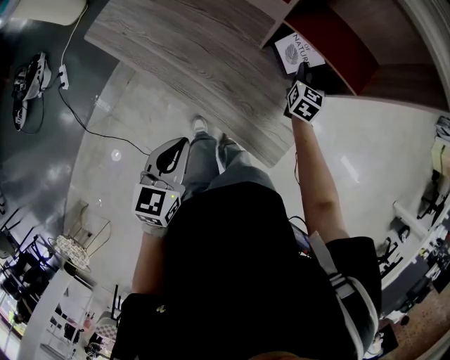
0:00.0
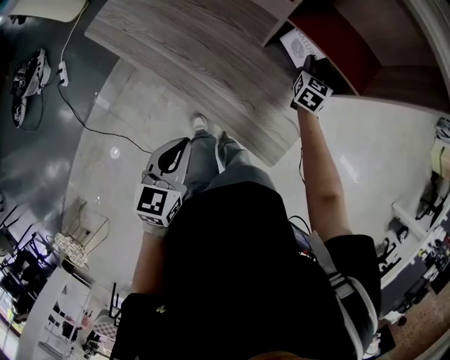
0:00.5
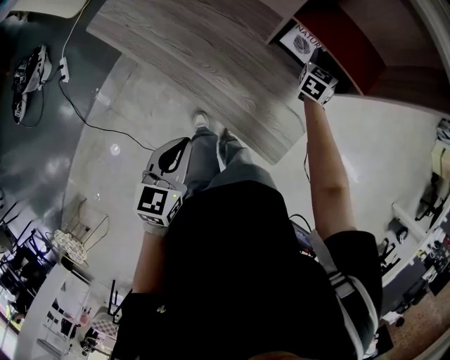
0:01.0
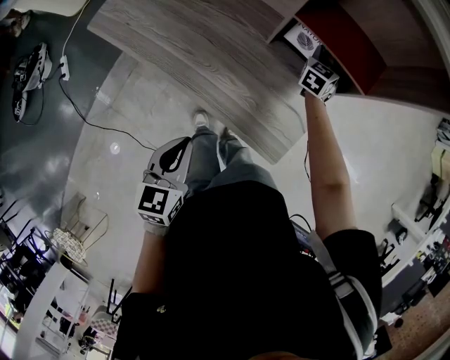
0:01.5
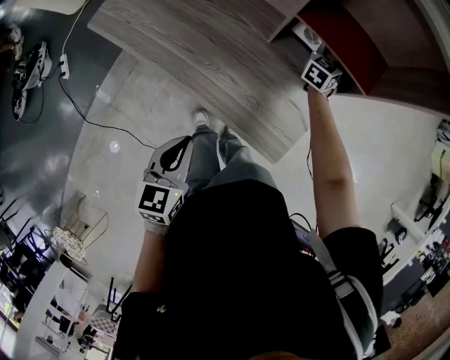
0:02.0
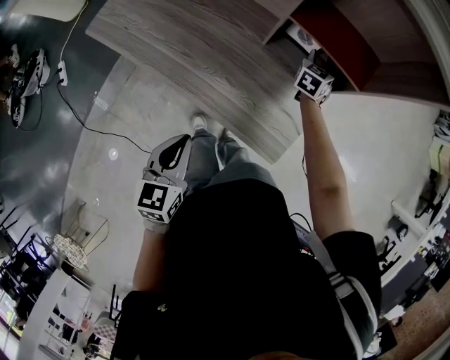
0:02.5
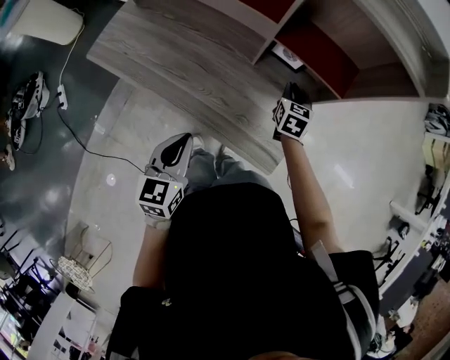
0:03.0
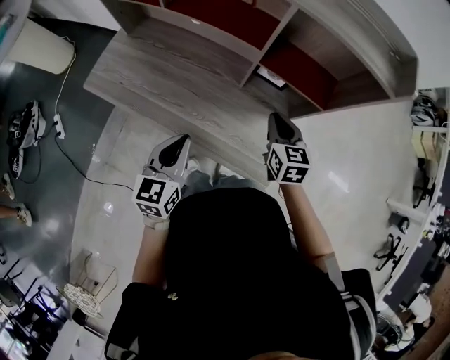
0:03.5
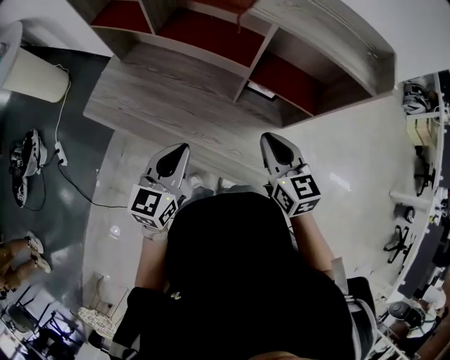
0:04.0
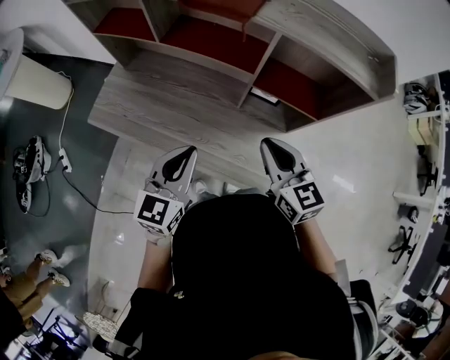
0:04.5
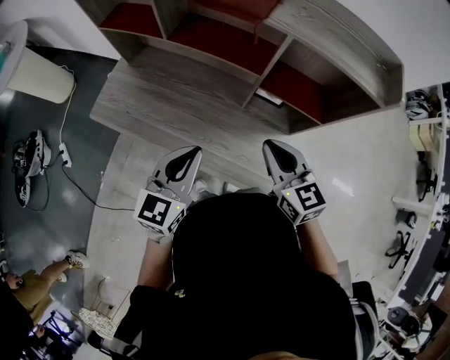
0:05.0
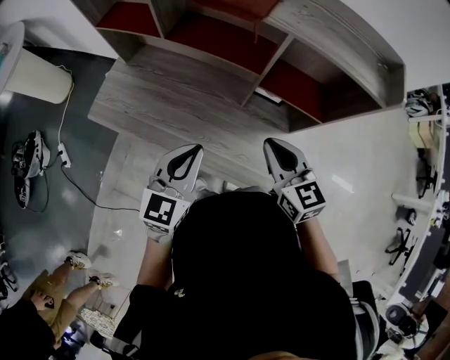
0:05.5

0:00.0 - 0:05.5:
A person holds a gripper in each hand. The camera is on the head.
0:00.0 - 0:02.0: The right gripper is displaced forward by approximately 10 cm.
0:02.0 - 0:03.5: The right gripper heads backward and upward, covering about 25 cm, rotates roughly 30 degrees, and closes up, while the left gripper moves forward, upward and to the left, about 15 cm.
0:03.5 - 0:05.5: The left gripper goes roughly 10 cm upward; the right gripper goes approximately 15 cm upward and to the left.

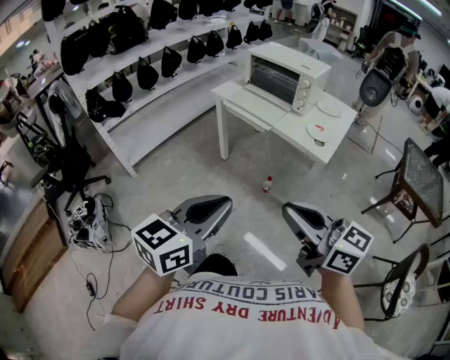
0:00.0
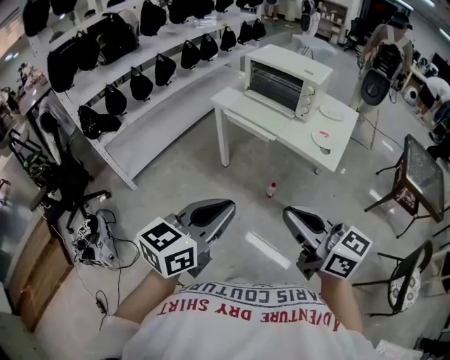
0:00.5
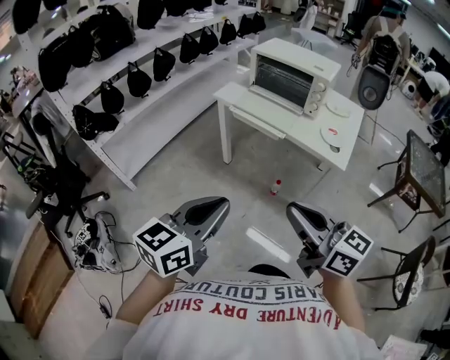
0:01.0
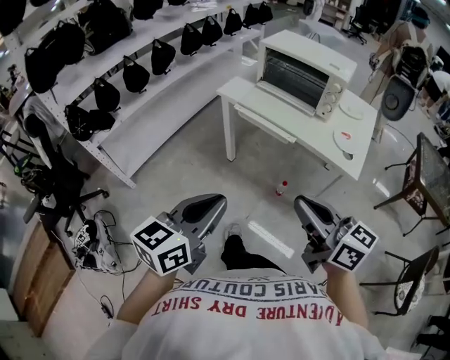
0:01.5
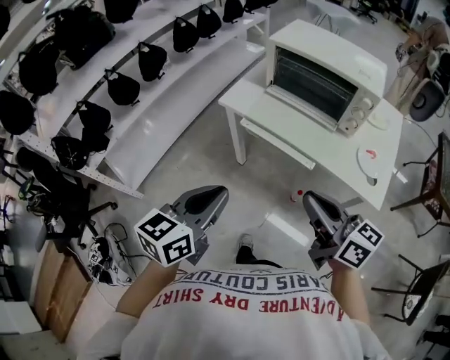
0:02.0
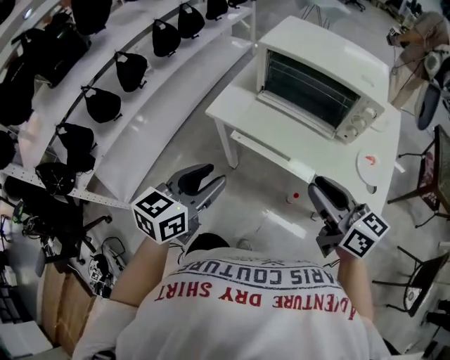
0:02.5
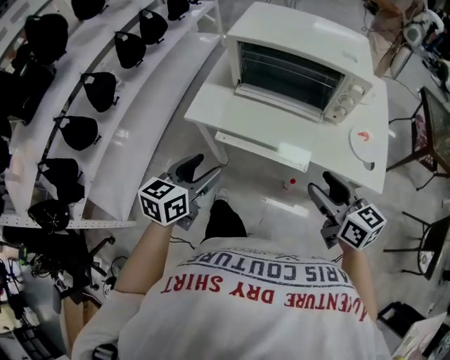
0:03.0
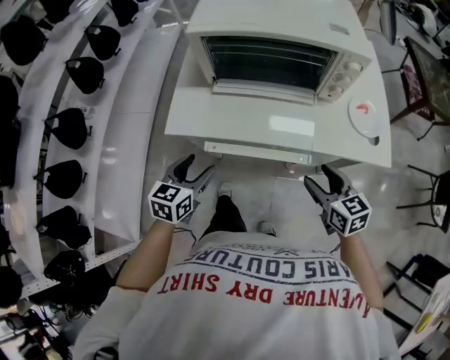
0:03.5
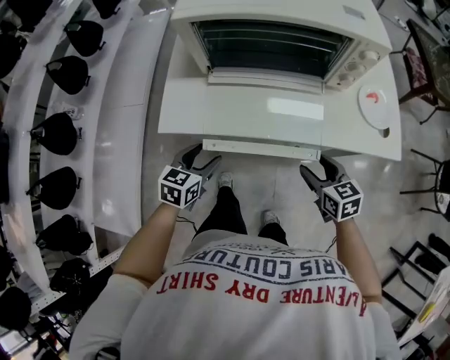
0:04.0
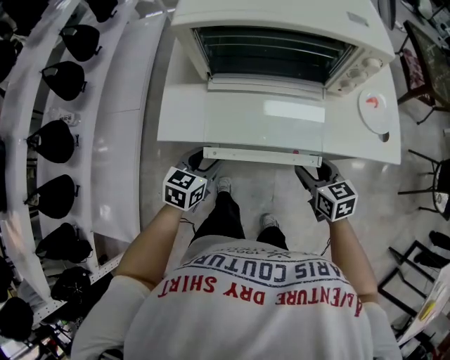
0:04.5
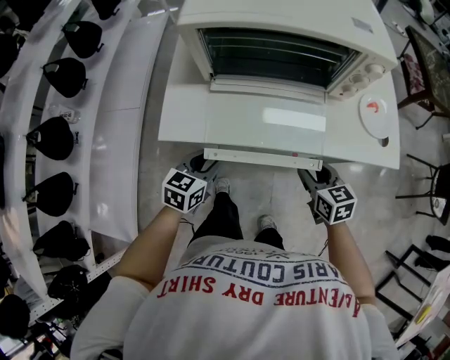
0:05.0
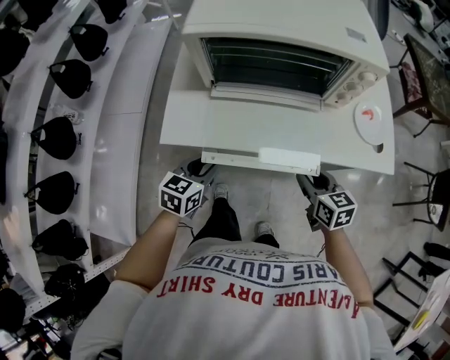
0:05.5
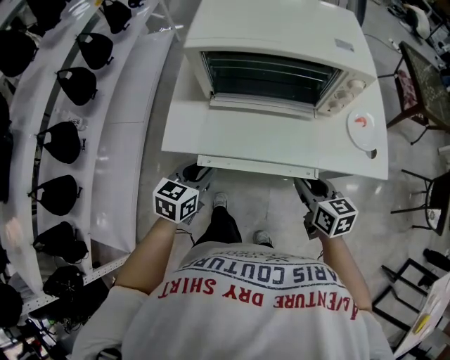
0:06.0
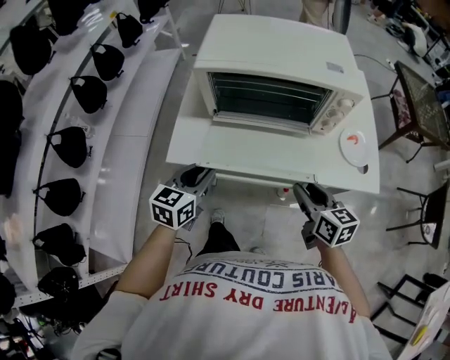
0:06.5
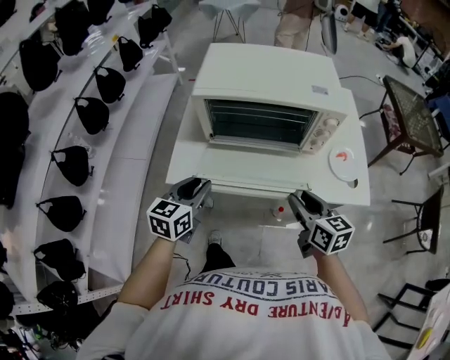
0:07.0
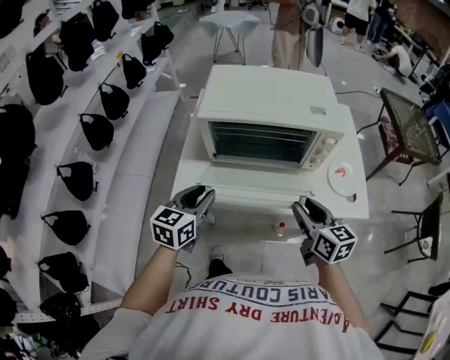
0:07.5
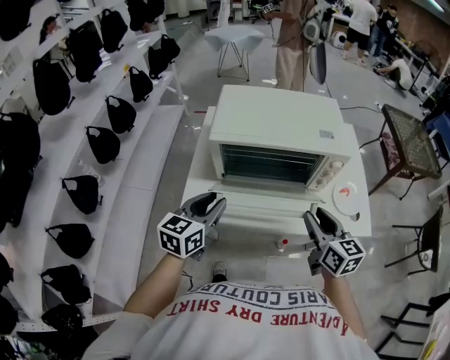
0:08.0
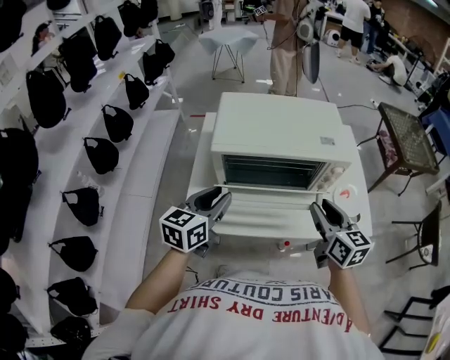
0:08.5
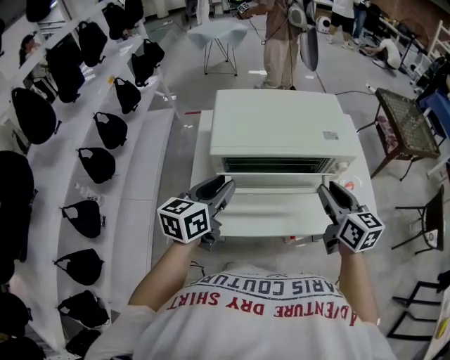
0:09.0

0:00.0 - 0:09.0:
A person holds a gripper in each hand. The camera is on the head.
0:00.0 - 0:02.0: The grippers both shift forward by about 40 cm. The right gripper changes its angle by some 20 degrees.
0:02.0 - 0:04.5: The left gripper ends up some 40 cm from where it was, changes its angle by roughly 40 degrees, and opens; the right gripper goes some 25 cm downward, points its fingers roughly 30 degrees further downward, and opens.
0:04.5 - 0:07.0: Both grippers travel together upward, roughly 15 cm.
0:07.0 - 0:09.0: The right gripper shifts approximately 15 cm upward and forward, while the left gripper moves forward and upward, roughly 15 cm.

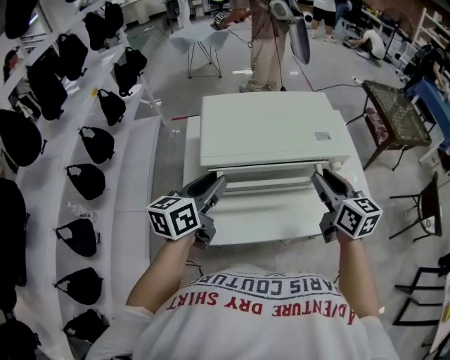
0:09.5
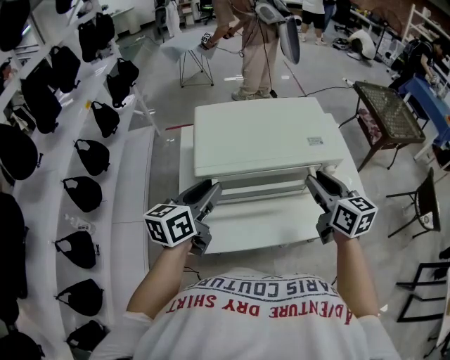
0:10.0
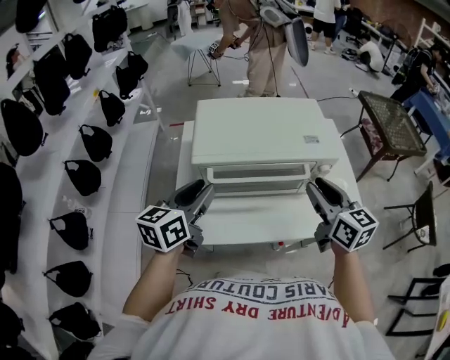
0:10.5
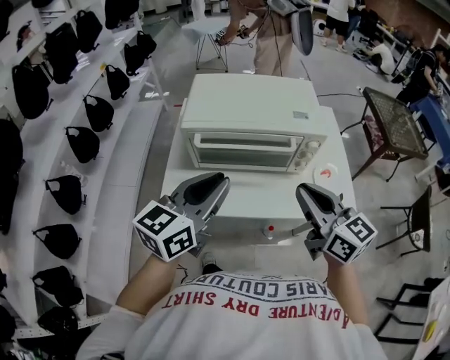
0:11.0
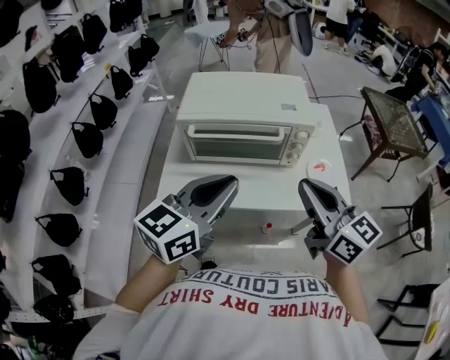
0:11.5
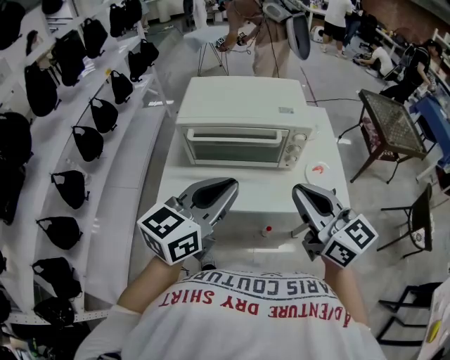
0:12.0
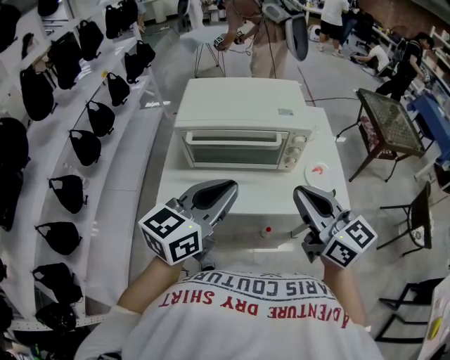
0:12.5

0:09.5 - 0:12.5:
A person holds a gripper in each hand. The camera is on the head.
0:09.5 - 0:11.0: The left gripper is displaced backward, to the right and upward by about 20 cm. The right gripper goes about 15 cm backward, rotates some 20 degrees, and closes its fingers.
0:11.0 - 0:12.5: The right gripper moves about 5 cm; the left gripper is displaced to the right by roughly 5 cm.

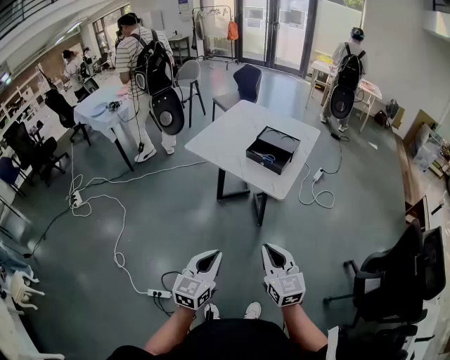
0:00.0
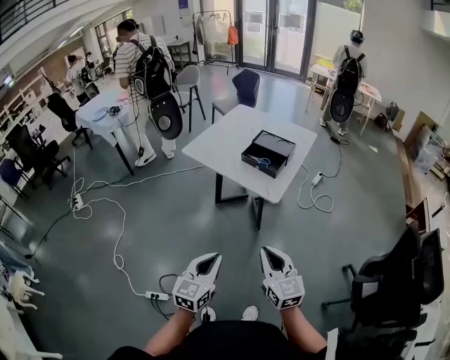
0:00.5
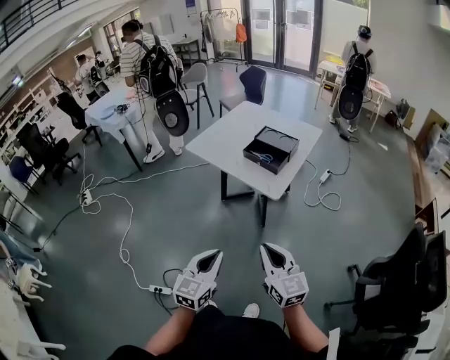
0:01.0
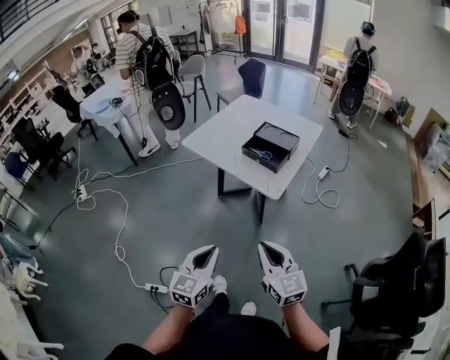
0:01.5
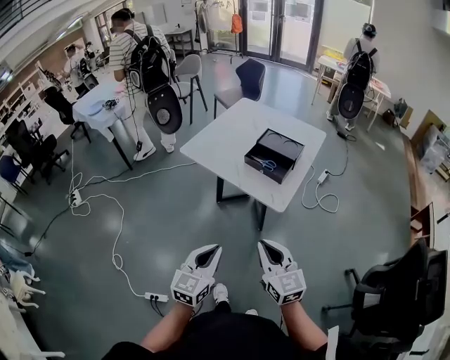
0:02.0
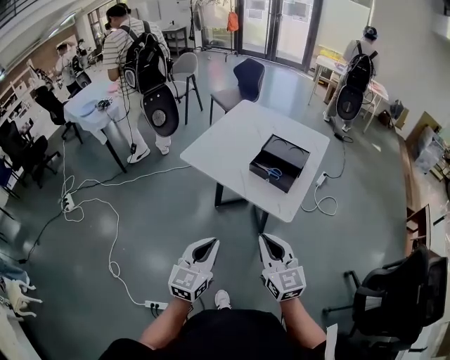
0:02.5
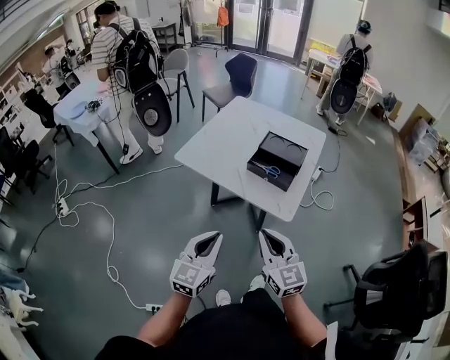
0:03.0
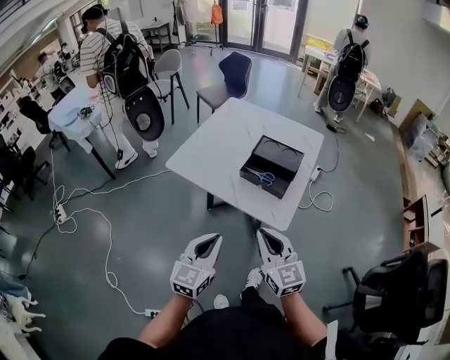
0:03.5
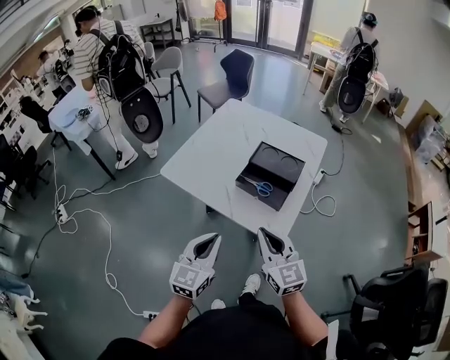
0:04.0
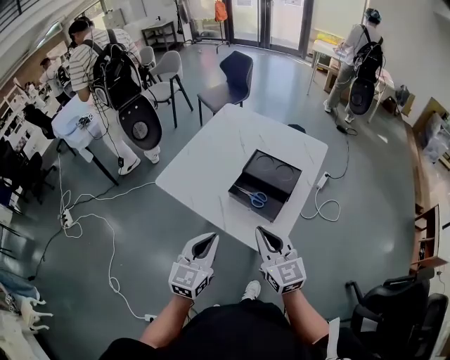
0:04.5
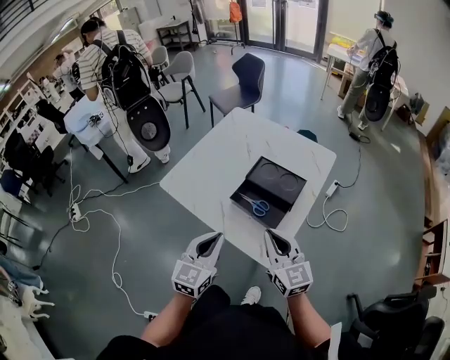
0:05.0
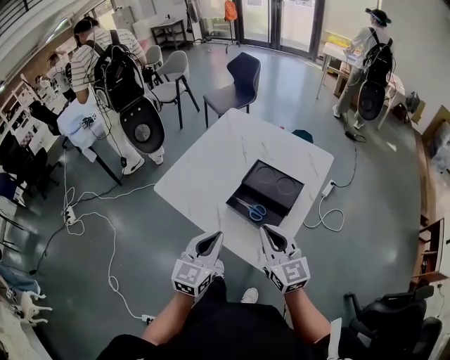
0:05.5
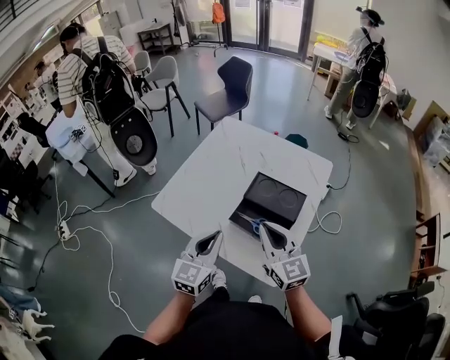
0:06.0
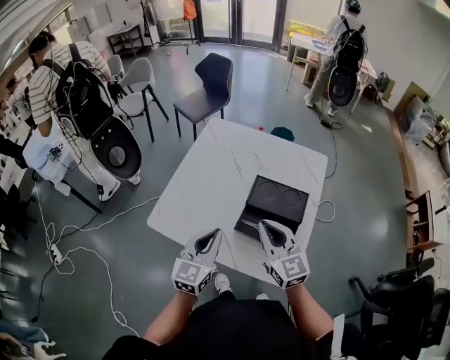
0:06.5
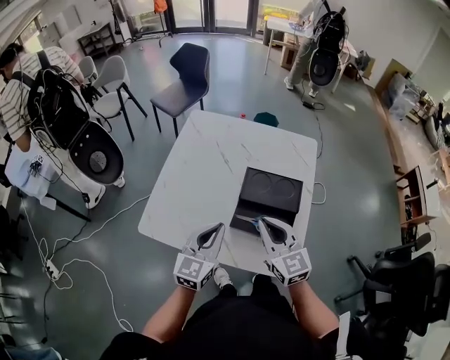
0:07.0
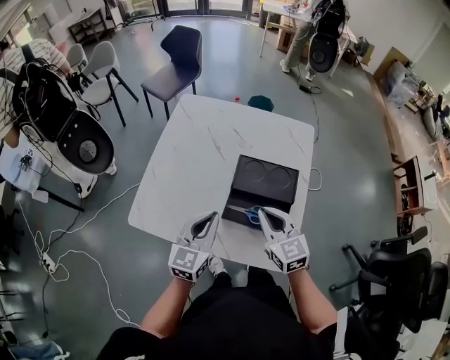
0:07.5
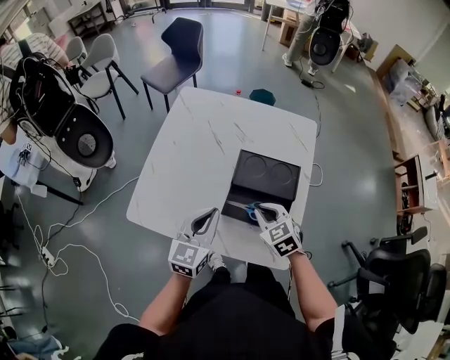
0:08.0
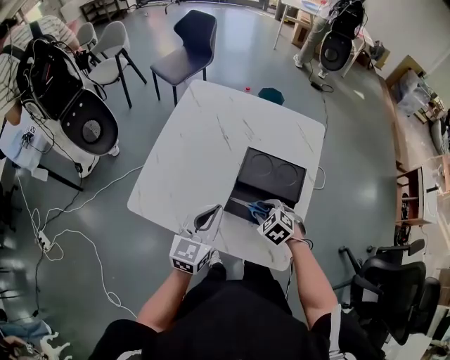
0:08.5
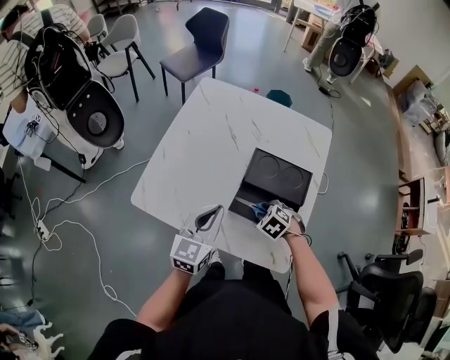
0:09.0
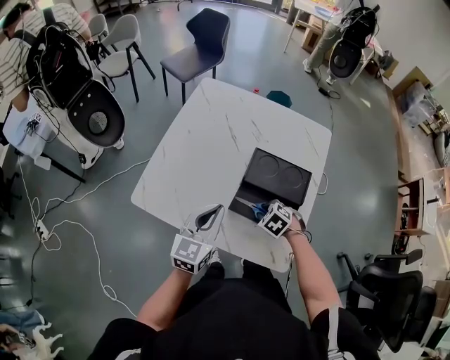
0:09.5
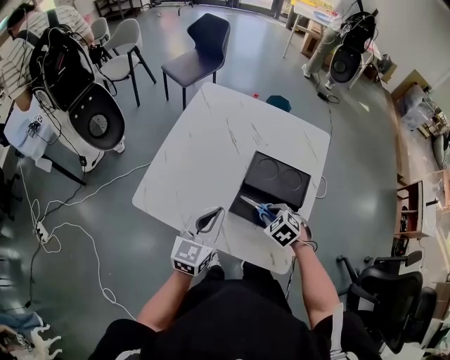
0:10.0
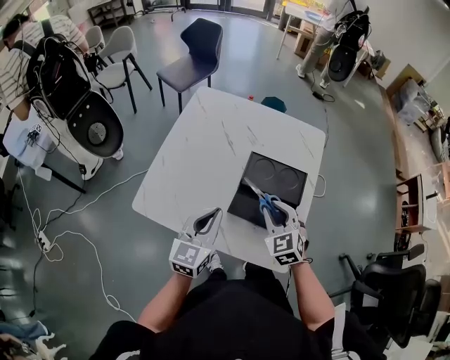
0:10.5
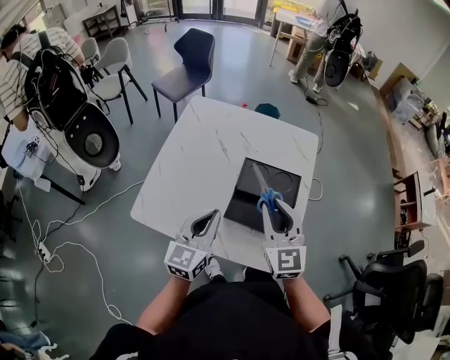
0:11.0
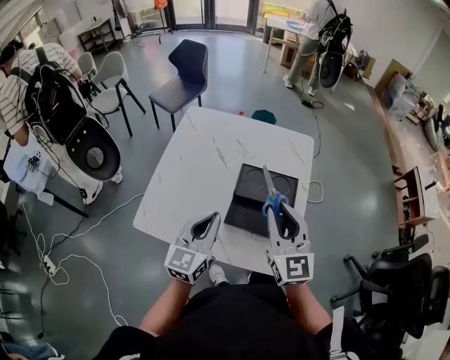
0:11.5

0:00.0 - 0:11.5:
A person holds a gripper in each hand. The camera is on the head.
0:00.0 - 0:02.0: The two grippers go roughly 10 cm forward.
0:02.0 - 0:04.0: Both grippers travel together forward, approximately 20 cm.
0:04.0 - 0:06.0: Both grippers travel together forward, approximately 20 cm.
0:06.0 - 0:07.5: The right gripper heads downward and forward, covering about 10 cm, and changes its angle by about 20 degrees; the left gripper goes some 10 cm forward and downward.
0:07.5 - 0:09.5: The right gripper goes roughly 20 cm downward, and tilts its fingers about 50 degrees downward.
0:09.5 - 0:11.5: The right gripper moves upward, some 30 cm, and angles its fingers upward, by roughly 70 degrees. Meanwhile the left gripper travels upward by roughly 5 cm.
